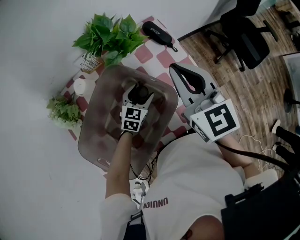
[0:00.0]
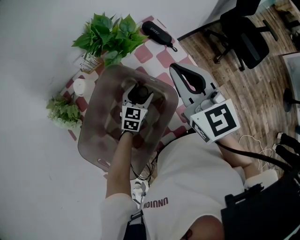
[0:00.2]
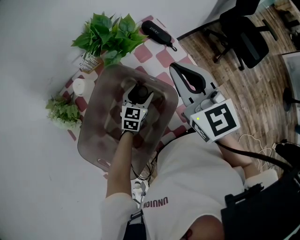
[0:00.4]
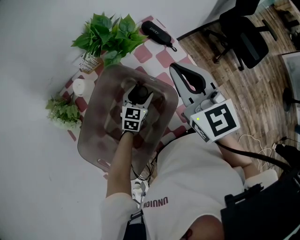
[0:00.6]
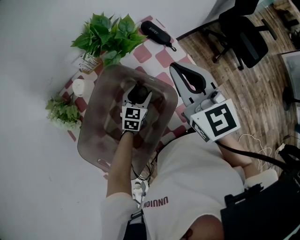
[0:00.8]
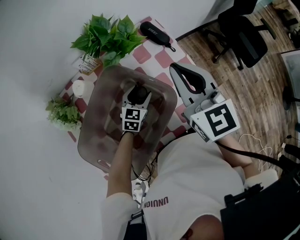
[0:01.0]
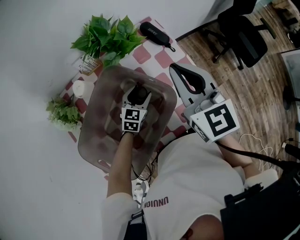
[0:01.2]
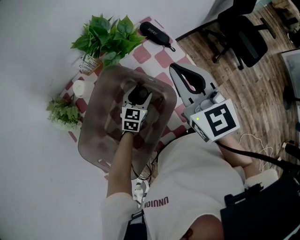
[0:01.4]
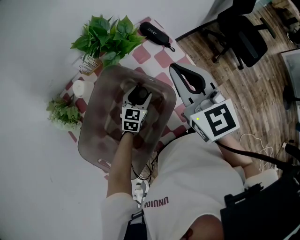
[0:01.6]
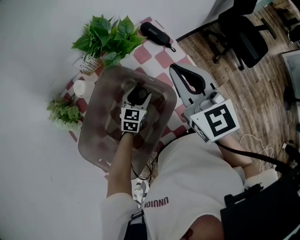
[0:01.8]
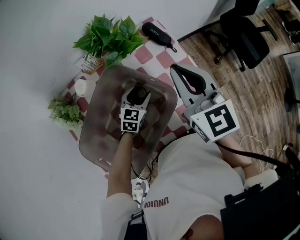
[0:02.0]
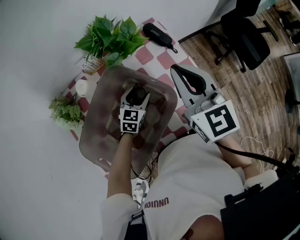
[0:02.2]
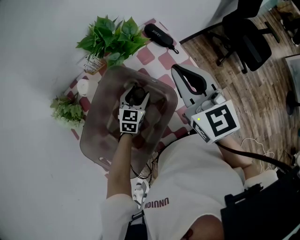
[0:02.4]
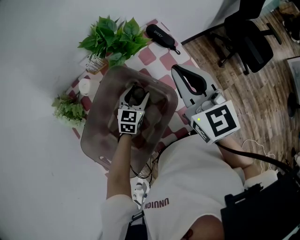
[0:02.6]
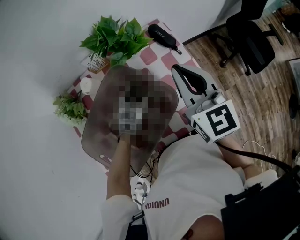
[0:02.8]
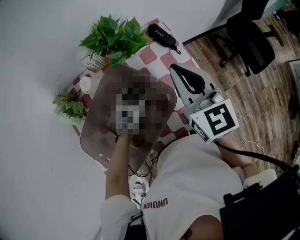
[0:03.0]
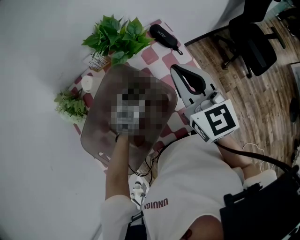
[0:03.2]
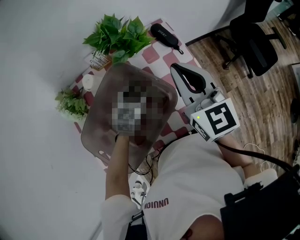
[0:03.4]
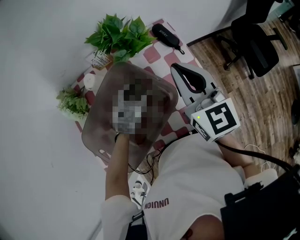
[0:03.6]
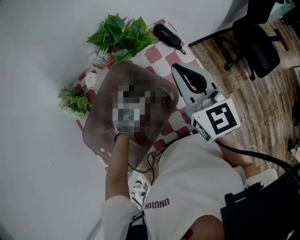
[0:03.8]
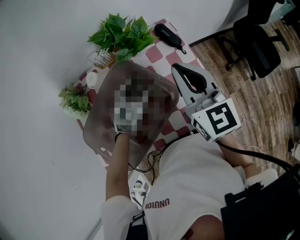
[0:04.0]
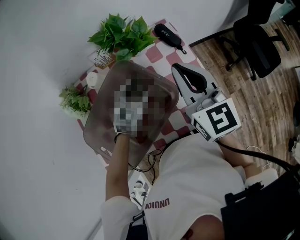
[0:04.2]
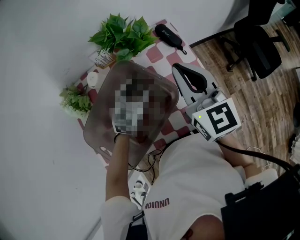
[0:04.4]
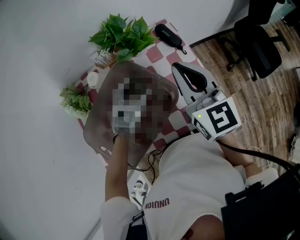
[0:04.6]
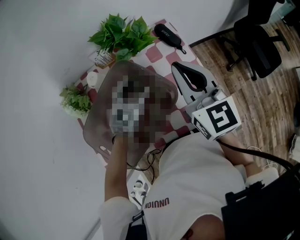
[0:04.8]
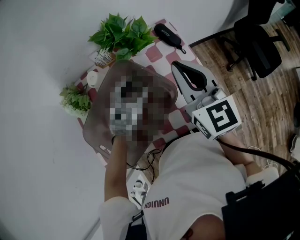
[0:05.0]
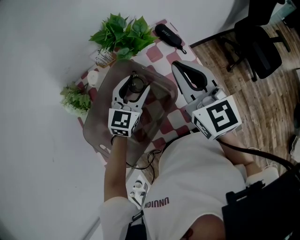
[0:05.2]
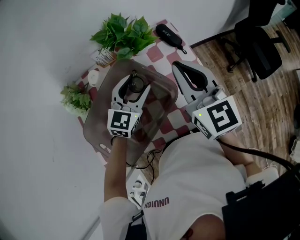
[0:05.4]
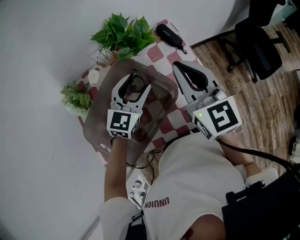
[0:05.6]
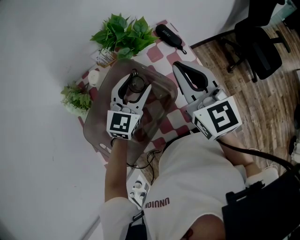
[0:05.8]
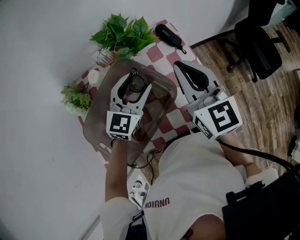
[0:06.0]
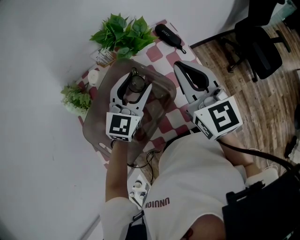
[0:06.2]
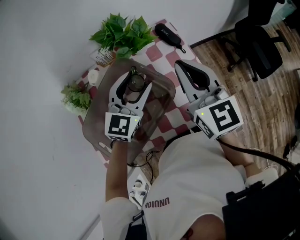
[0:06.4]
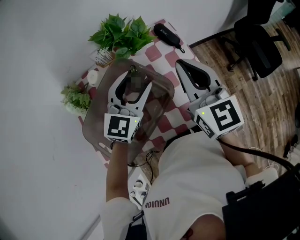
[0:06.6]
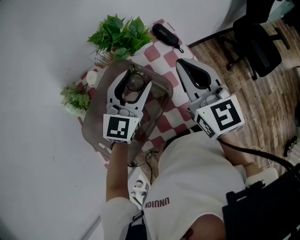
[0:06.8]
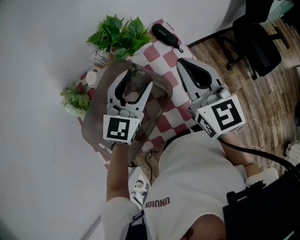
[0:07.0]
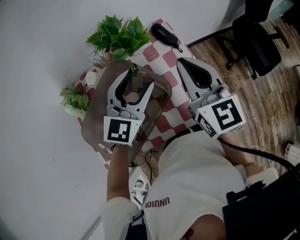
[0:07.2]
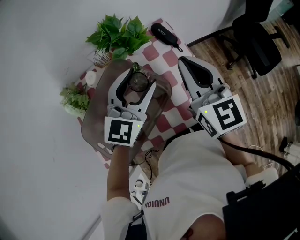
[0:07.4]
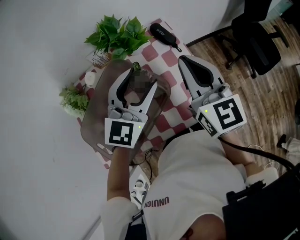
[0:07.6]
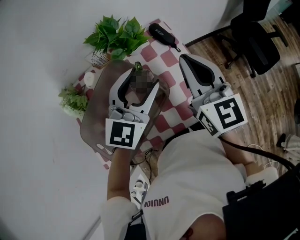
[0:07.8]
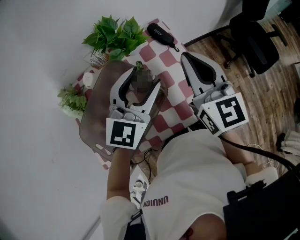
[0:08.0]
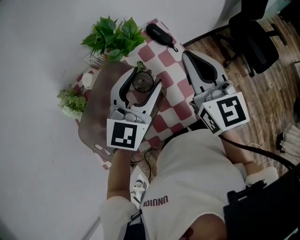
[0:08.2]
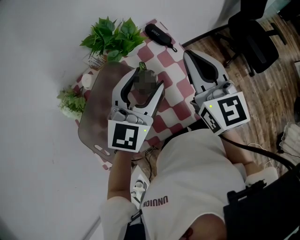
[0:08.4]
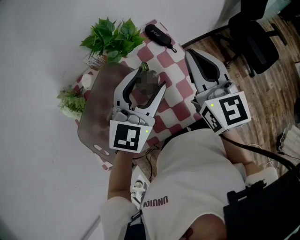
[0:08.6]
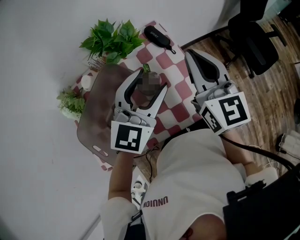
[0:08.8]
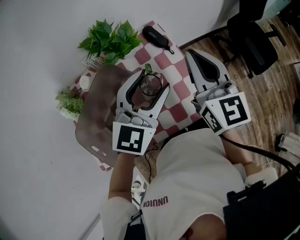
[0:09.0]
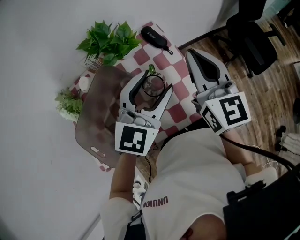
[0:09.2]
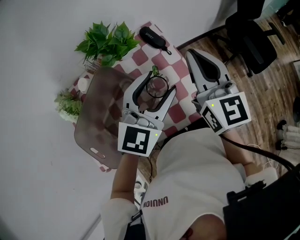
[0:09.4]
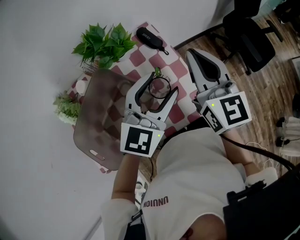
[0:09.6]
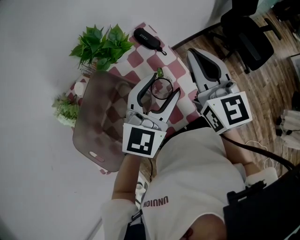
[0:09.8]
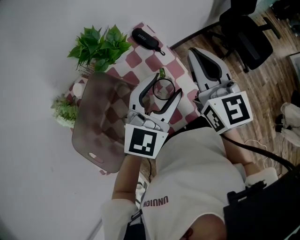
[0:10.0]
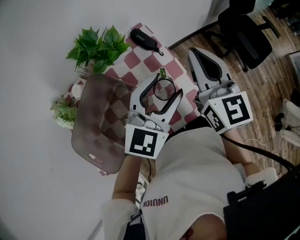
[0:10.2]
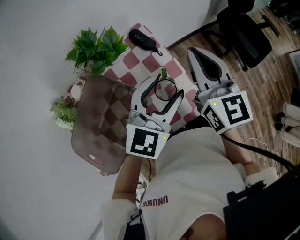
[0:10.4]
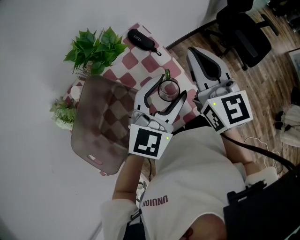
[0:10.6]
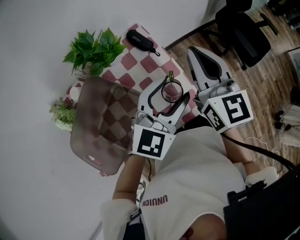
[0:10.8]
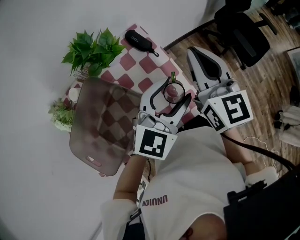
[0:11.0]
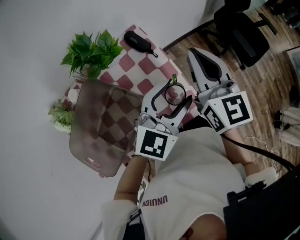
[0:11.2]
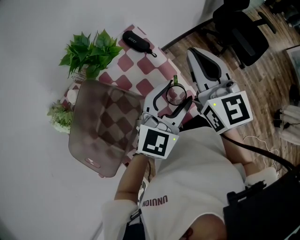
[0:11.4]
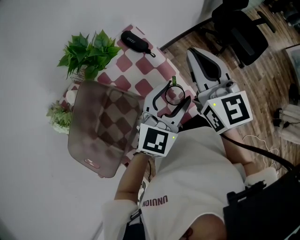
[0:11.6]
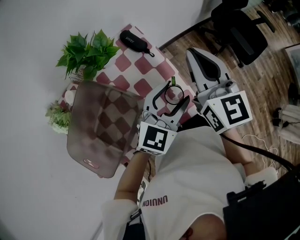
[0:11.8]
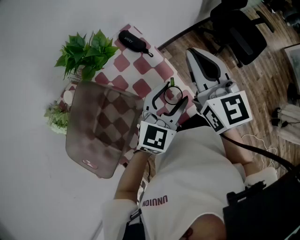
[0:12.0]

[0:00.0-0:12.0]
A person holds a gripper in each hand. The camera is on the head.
0:00.0 to 0:01.6: Neither gripper changes place.
0:01.6 to 0:03.0: The left gripper shifts about 5 cm upward.
0:03.0 to 0:04.4: The left gripper is displaced upward by roughly 5 cm.
0:04.4 to 0:06.0: The left gripper goes roughly 10 cm upward.
0:06.0 to 0:07.6: The left gripper moves upward and to the right, roughly 10 cm.
0:07.6 to 0:09.0: The grippers both shift to the right by some 5 cm.
0:09.0 to 0:10.4: The right gripper changes place by roughly 5 cm. Meanwhile the left gripper goes some 10 cm to the right.
0:10.4 to 0:12.0: The left gripper heads downward, covering some 10 cm.

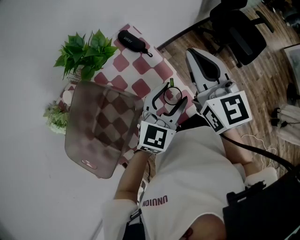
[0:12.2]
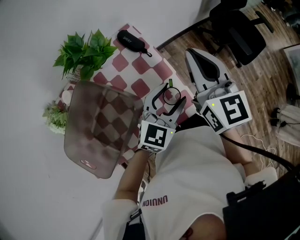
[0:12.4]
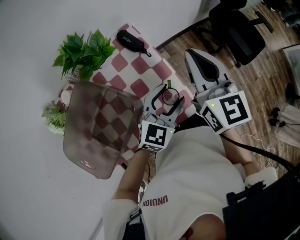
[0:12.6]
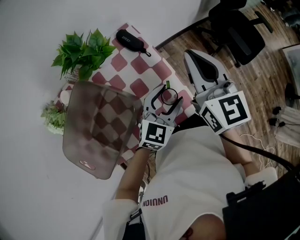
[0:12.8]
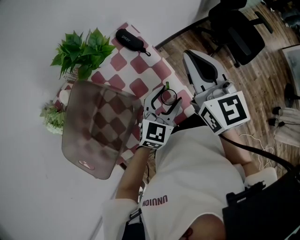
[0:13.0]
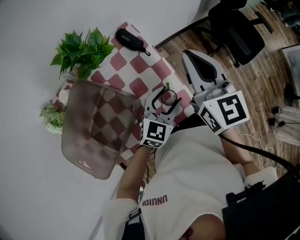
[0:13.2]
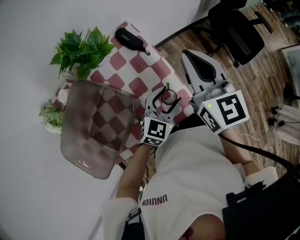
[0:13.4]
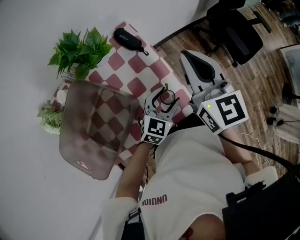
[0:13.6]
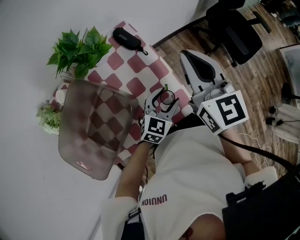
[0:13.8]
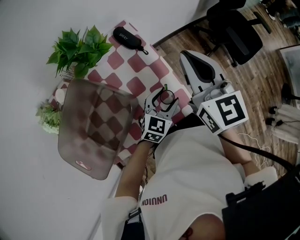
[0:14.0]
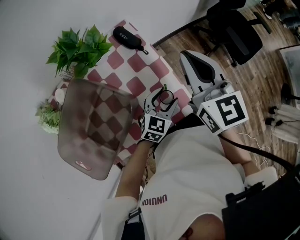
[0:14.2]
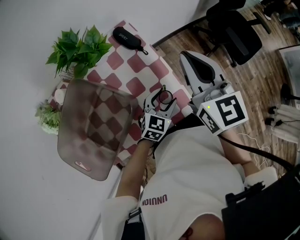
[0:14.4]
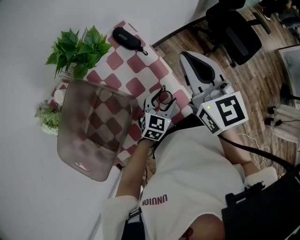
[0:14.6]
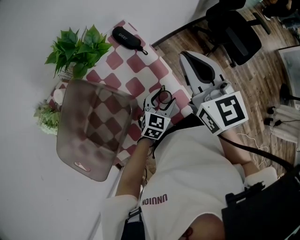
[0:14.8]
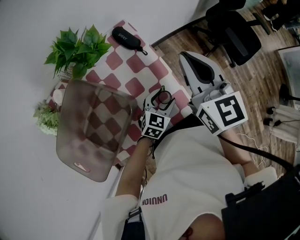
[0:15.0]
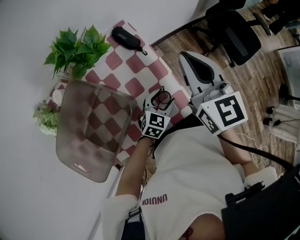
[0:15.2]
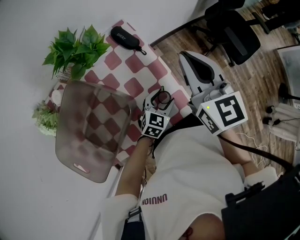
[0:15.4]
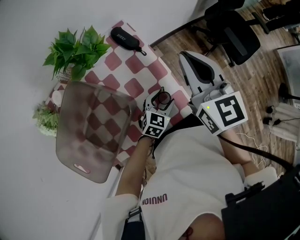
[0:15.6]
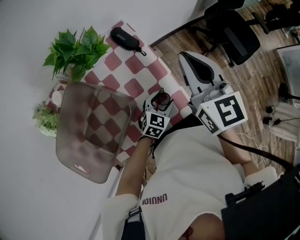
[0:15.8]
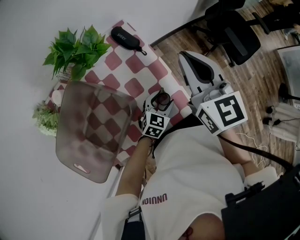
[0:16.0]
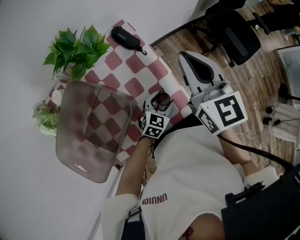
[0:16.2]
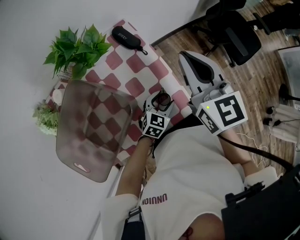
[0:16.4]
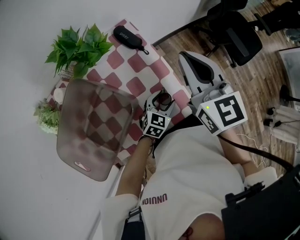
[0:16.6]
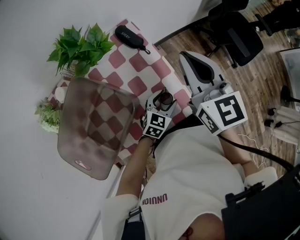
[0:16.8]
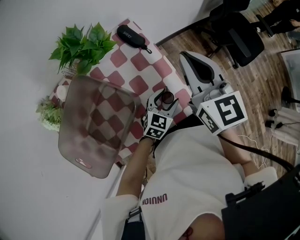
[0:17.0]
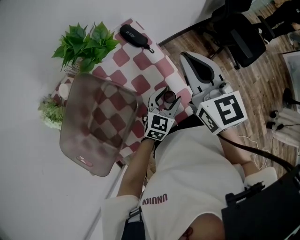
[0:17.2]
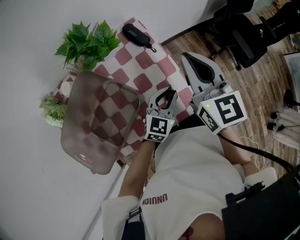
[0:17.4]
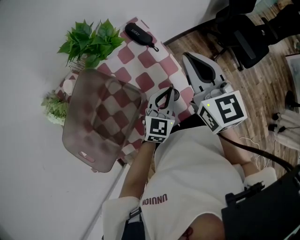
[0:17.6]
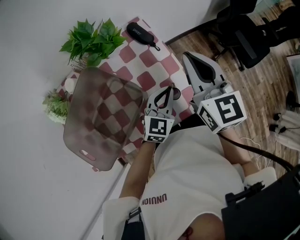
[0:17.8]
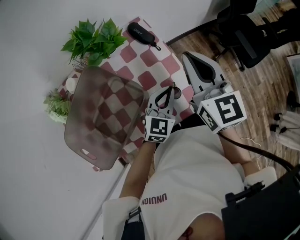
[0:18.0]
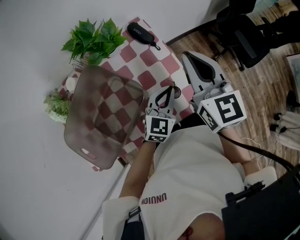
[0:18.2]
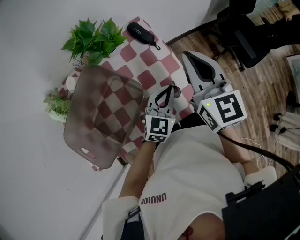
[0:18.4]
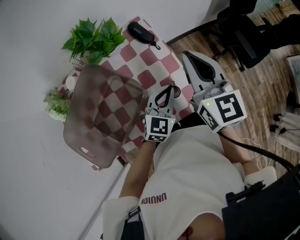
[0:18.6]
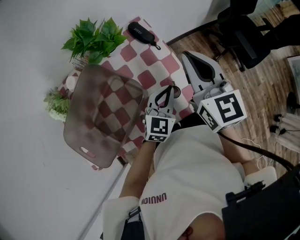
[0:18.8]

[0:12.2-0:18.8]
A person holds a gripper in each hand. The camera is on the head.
0:12.2 to 0:13.8: The left gripper goes roughly 10 cm downward.
0:13.8 to 0:15.4: The left gripper heads downward, covering roughly 5 cm.
0:15.4 to 0:17.2: The left gripper shifts about 5 cm upward.
0:17.2 to 0:18.8: The left gripper is displaced upward by roughly 5 cm, and closes its fingers.

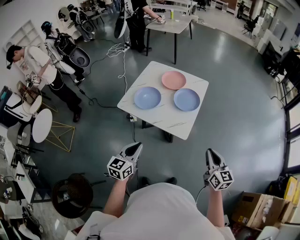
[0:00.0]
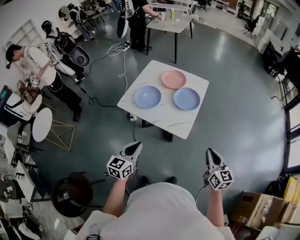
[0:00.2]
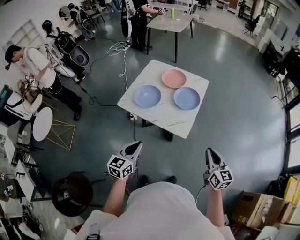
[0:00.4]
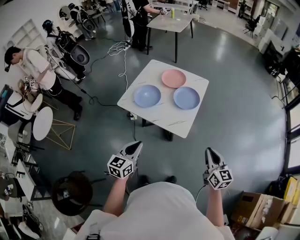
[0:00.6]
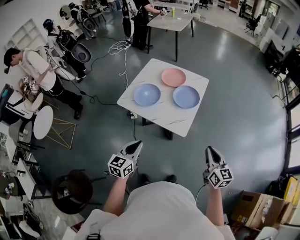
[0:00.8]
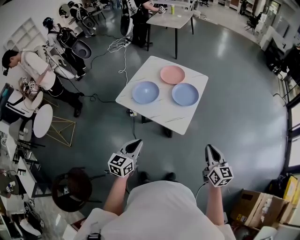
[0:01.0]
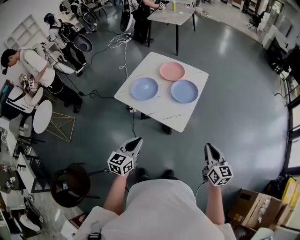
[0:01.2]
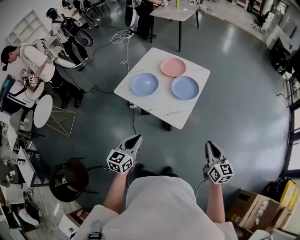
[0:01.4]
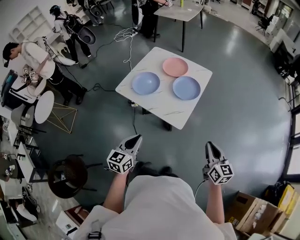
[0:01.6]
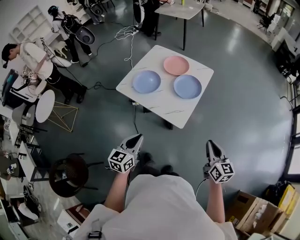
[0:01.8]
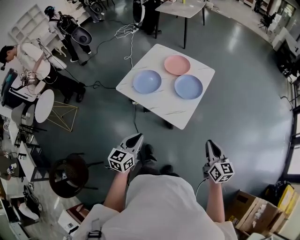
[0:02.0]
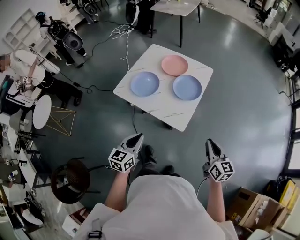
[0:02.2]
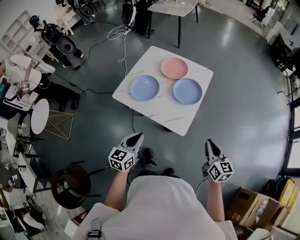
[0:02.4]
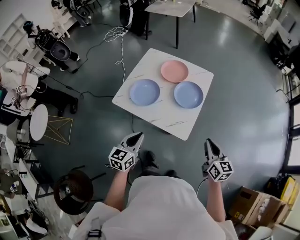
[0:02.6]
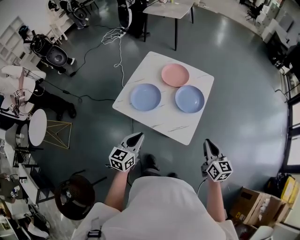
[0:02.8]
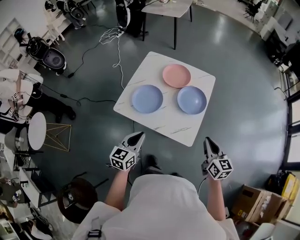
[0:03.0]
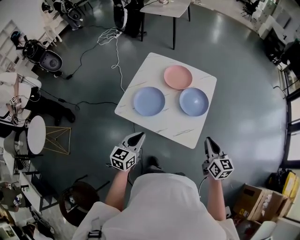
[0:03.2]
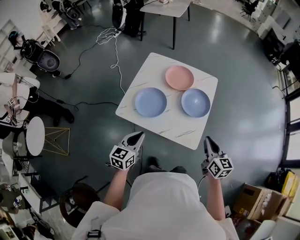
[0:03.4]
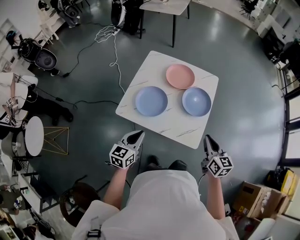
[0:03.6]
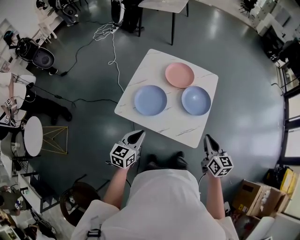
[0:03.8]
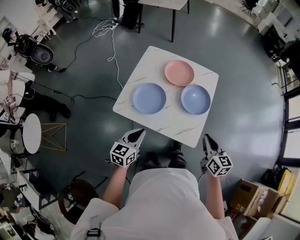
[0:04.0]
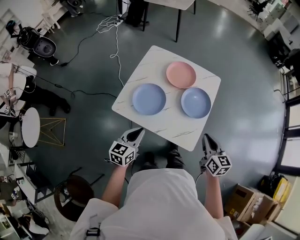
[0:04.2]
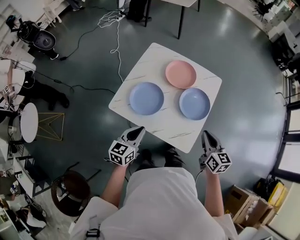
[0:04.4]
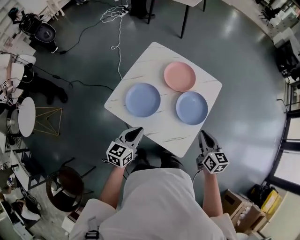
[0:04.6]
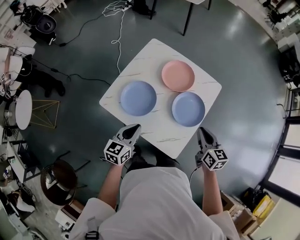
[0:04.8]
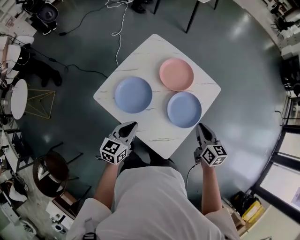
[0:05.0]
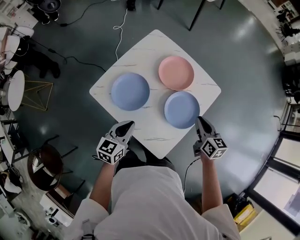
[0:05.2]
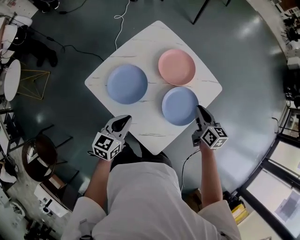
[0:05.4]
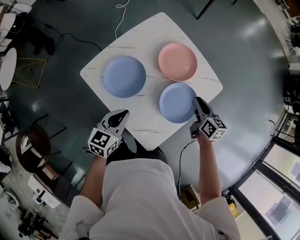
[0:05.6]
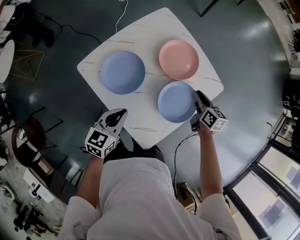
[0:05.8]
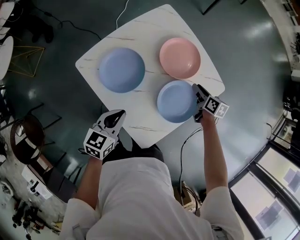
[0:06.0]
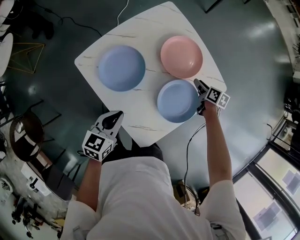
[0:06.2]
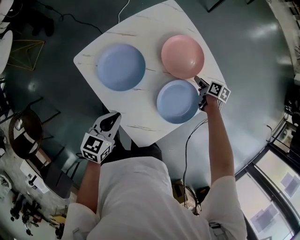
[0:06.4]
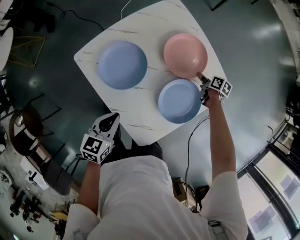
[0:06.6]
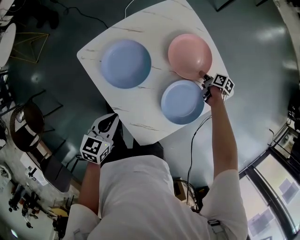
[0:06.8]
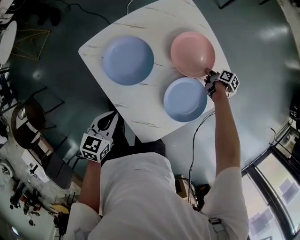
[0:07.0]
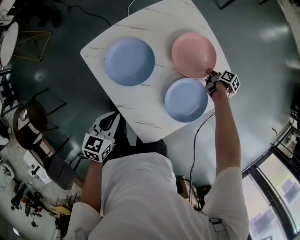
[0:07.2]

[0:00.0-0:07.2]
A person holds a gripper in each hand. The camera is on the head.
0:00.0 to 0:01.4: Both grippers move to the right, some 5 cm.
0:01.4 to 0:02.8: Both grippers move forward and to the left, some 20 cm.
0:02.8 to 0:04.4: The right gripper goes roughly 15 cm forward and to the left, while the left gripper moves forward, approximately 10 cm.
0:04.4 to 0:05.8: The right gripper moves forward and downward, roughly 35 cm, and swivels roughly 20 degrees. Meanwhile the left gripper moves to the right, downward and forward, roughly 15 cm.
0:05.8 to 0:07.2: The left gripper is displaced downward by about 5 cm. The right gripper heads downward and forward, covering about 20 cm, and rotates some 40 degrees.
